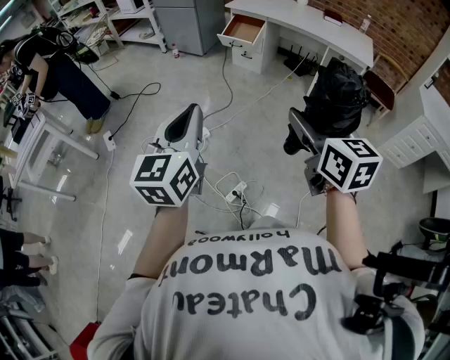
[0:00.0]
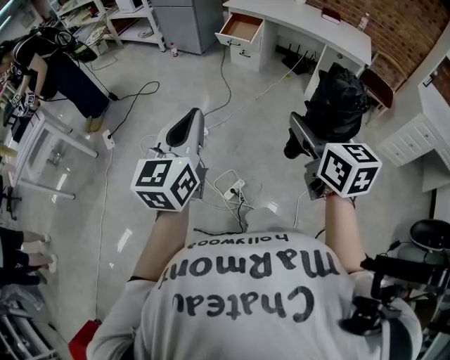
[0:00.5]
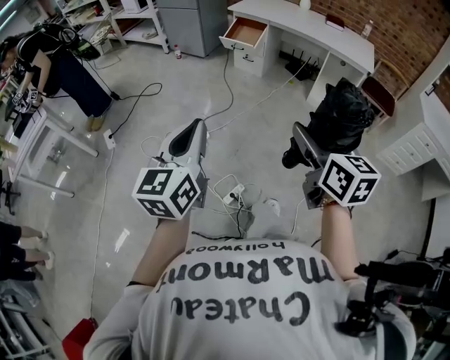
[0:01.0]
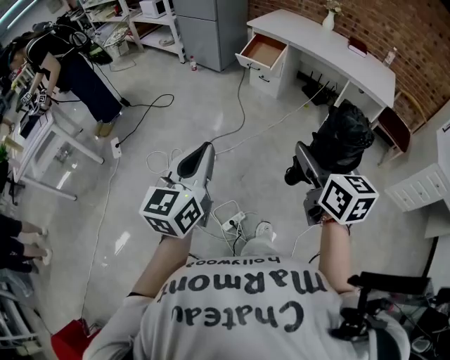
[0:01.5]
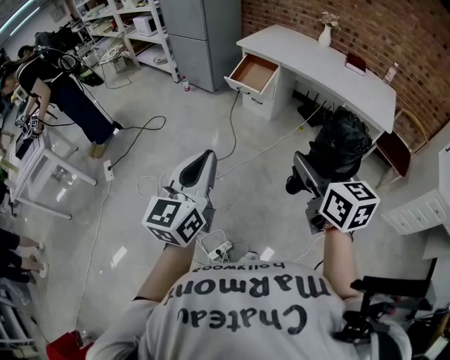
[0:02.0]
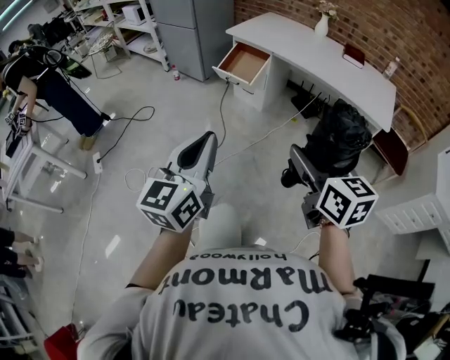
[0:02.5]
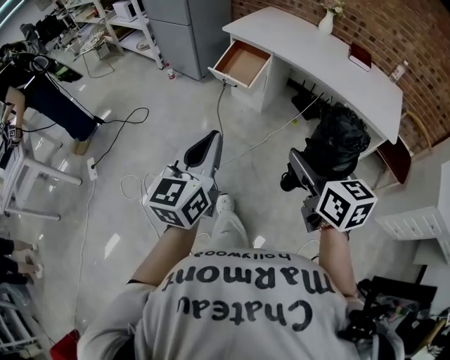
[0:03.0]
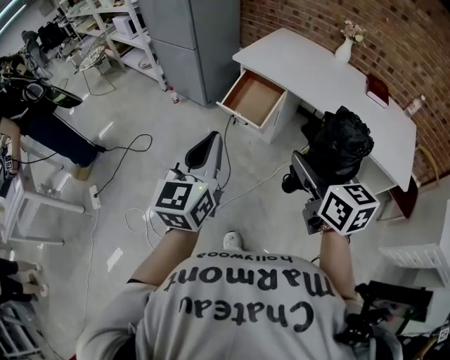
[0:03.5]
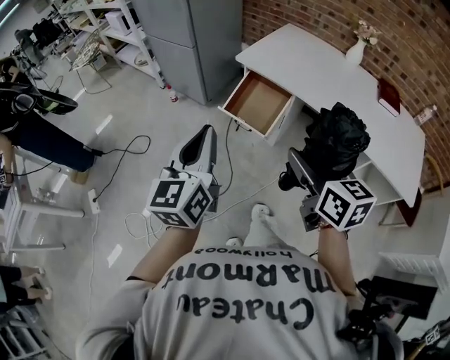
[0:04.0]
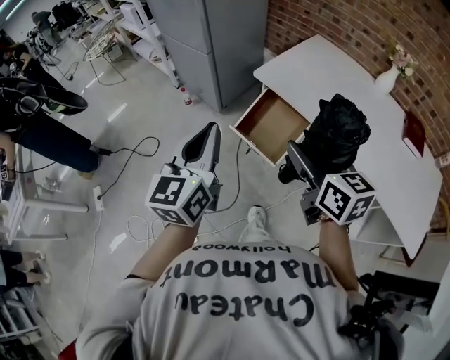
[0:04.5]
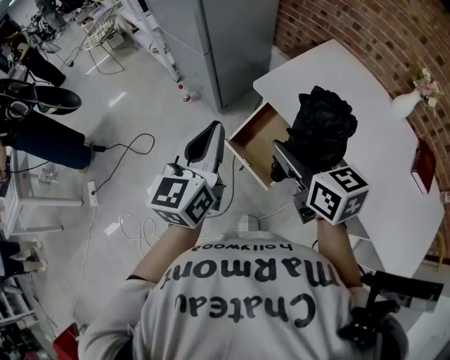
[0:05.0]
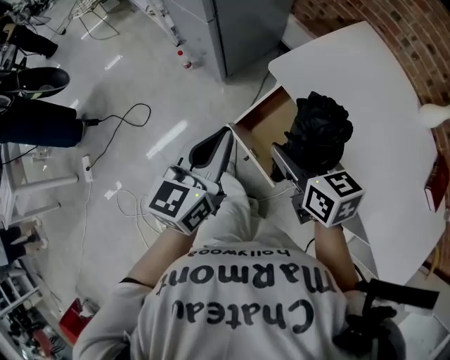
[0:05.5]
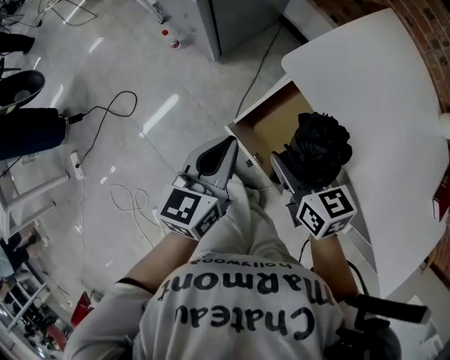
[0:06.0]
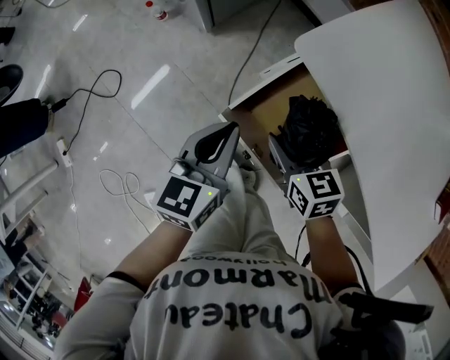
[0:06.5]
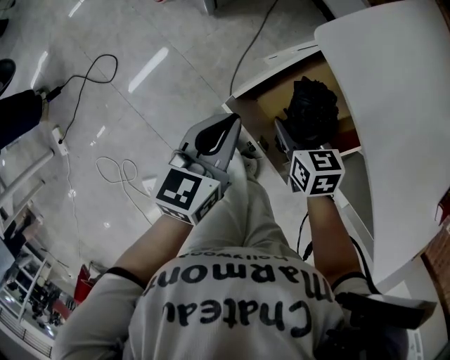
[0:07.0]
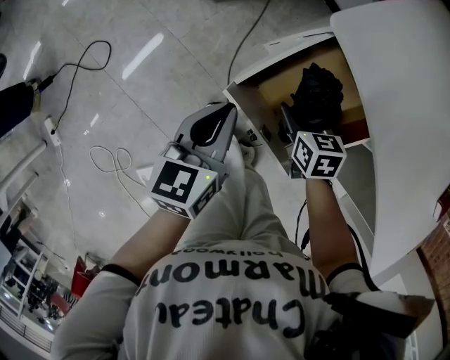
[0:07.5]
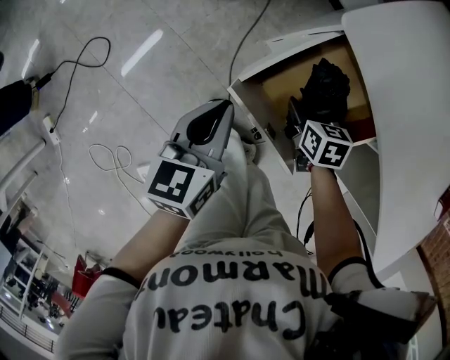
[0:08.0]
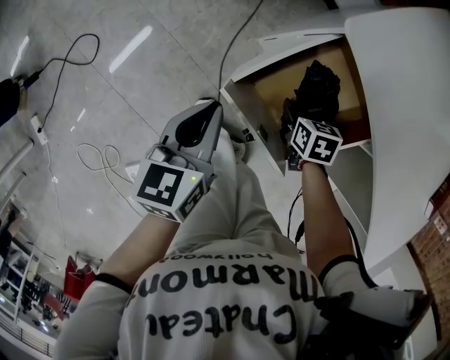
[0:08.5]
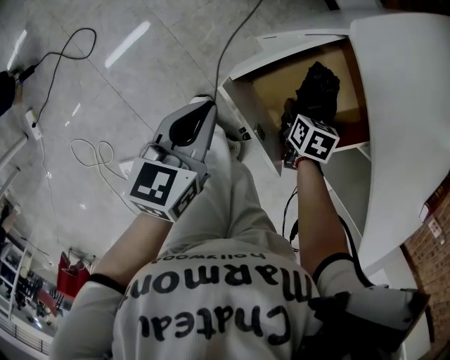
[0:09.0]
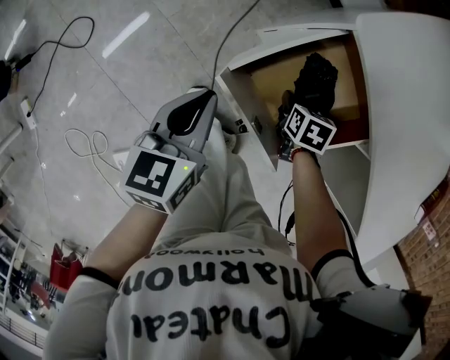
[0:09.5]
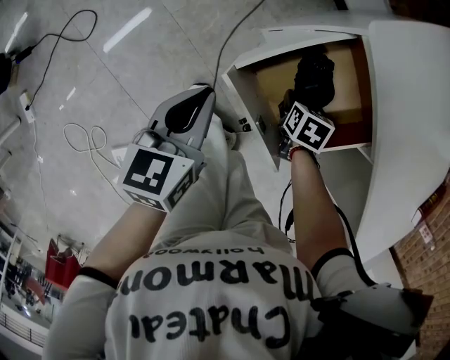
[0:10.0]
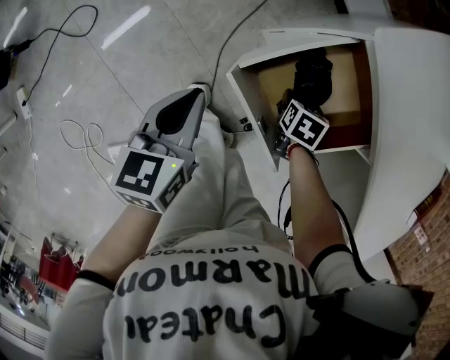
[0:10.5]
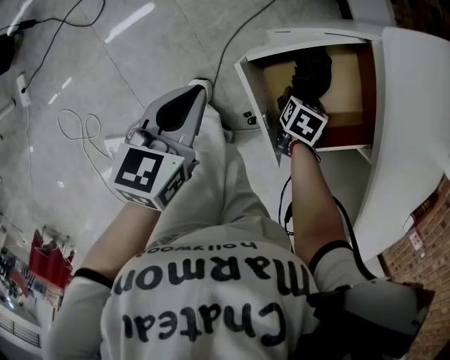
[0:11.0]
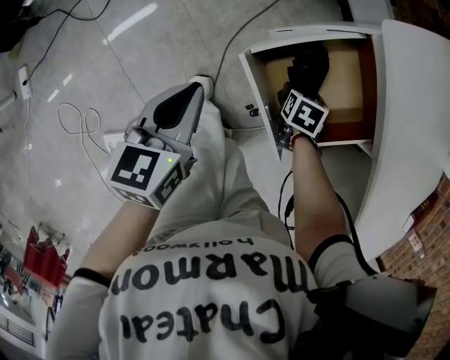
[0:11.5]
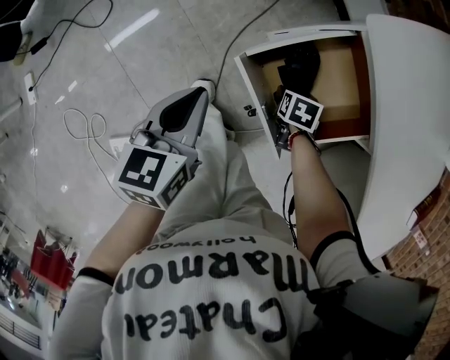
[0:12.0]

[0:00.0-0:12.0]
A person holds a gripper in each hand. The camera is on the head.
0:00.0 to 0:02.0: The two grippers go roughly 30 cm forward and to the right.
0:02.0 to 0:04.0: The two grippers travel together, forward, roughly 50 cm.
0:04.0 to 0:06.0: Both grippers travel together forward, some 35 cm. The right gripper turns by some 30 degrees, while the left gripper rotates approximately 20 degrees.
0:06.0 to 0:08.0: The right gripper travels downward by approximately 25 cm, and swivels about 30 degrees, while the left gripper goes about 15 cm downward.
0:08.0 to 0:10.0: The right gripper goes roughly 5 cm downward.
0:10.0 to 0:12.0: The left gripper ends up approximately 5 cm from where it was.

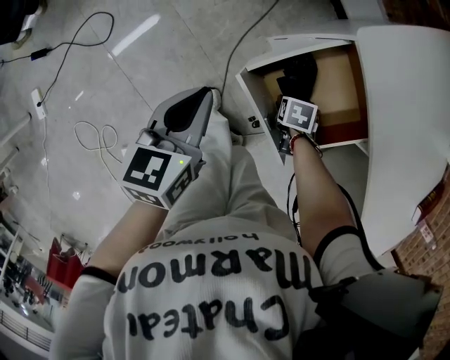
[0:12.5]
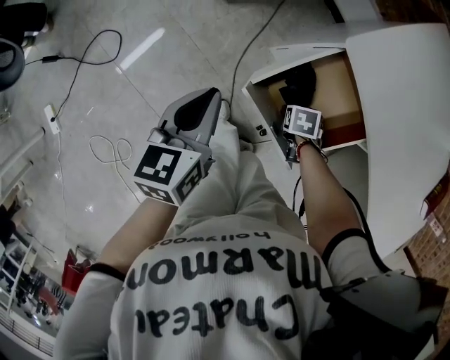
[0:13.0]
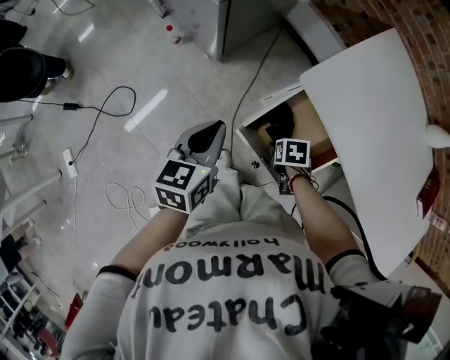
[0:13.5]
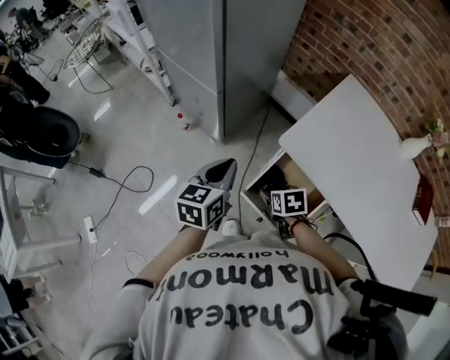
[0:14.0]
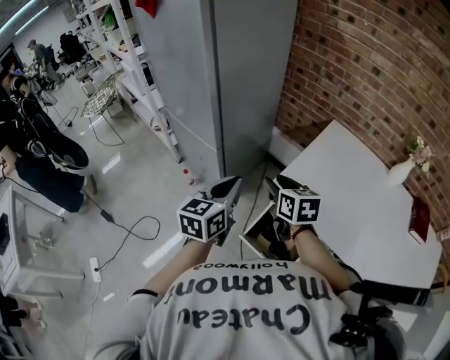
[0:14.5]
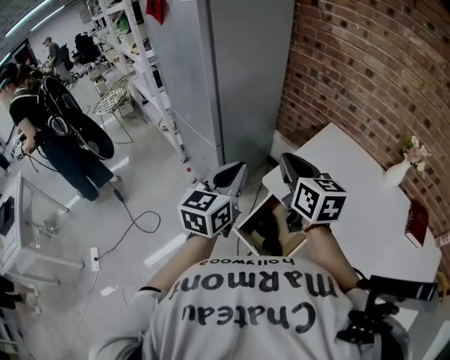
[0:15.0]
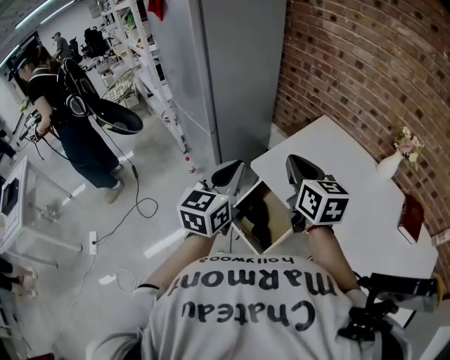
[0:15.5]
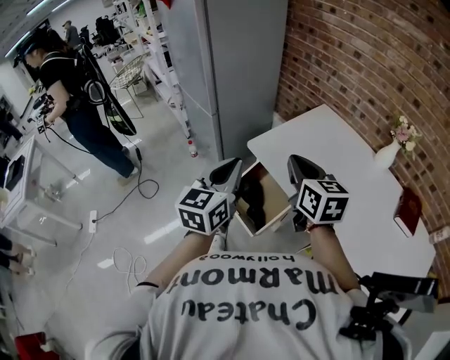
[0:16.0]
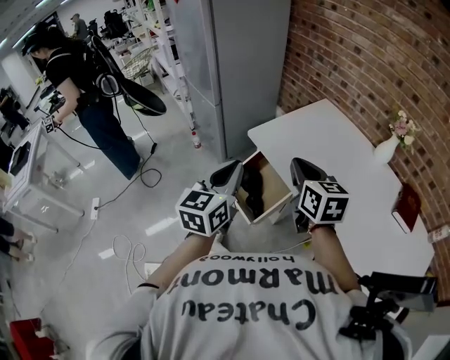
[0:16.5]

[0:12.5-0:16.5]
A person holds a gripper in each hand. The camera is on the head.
0:12.5 to 0:14.5: The left gripper moves upward, roughly 35 cm, and swivels approximately 30 degrees. The right gripper travels upward by roughly 50 cm, tips its fingers upward by approximately 50 degrees, and closes.
0:14.5 to 0:16.5: Both grippers move backward and to the right, roughly 30 cm. The right gripper closes up.

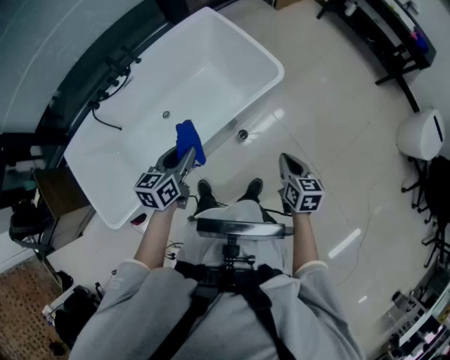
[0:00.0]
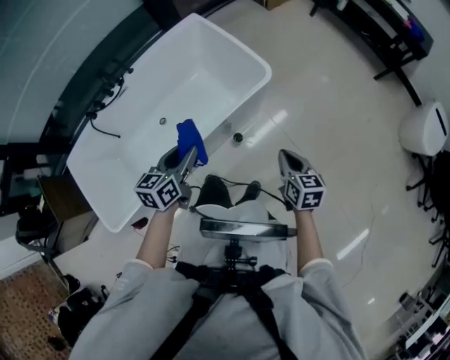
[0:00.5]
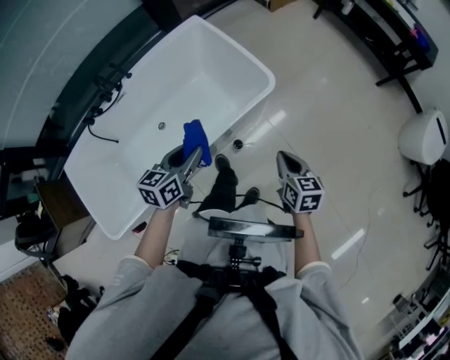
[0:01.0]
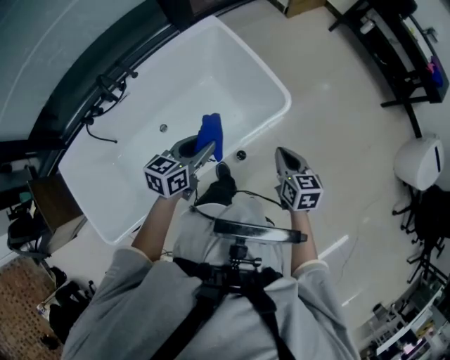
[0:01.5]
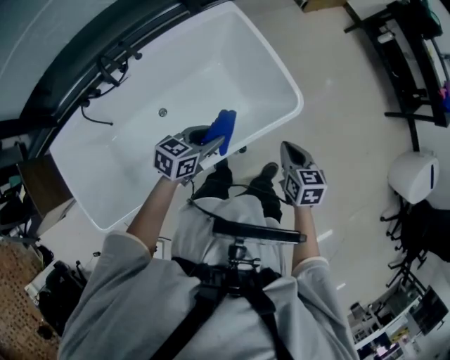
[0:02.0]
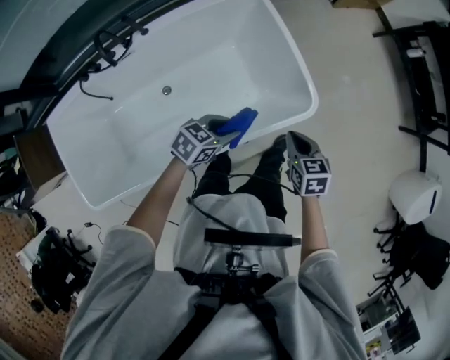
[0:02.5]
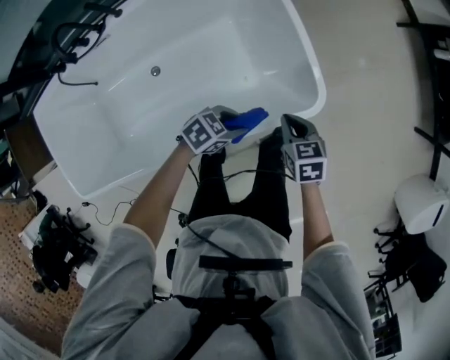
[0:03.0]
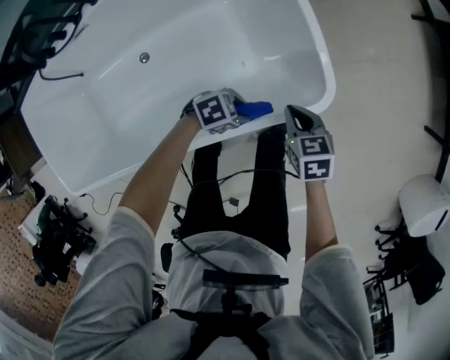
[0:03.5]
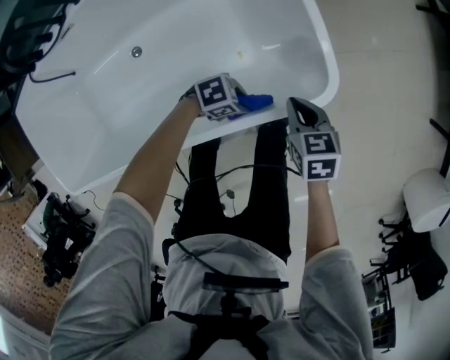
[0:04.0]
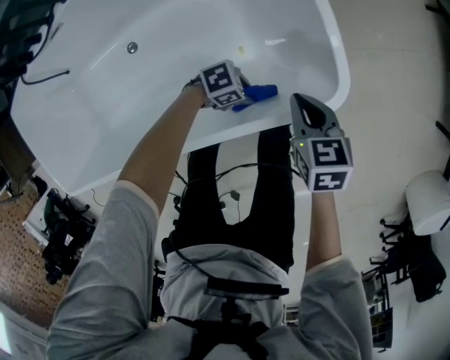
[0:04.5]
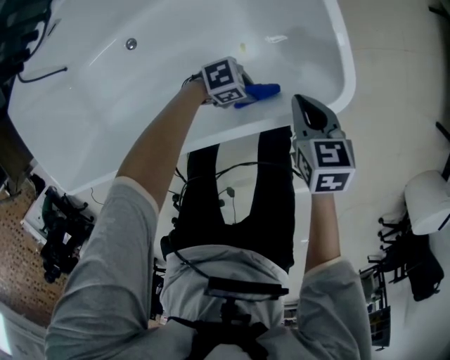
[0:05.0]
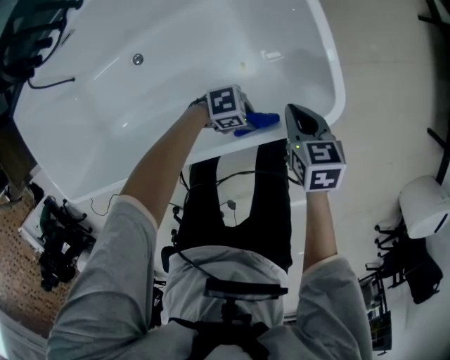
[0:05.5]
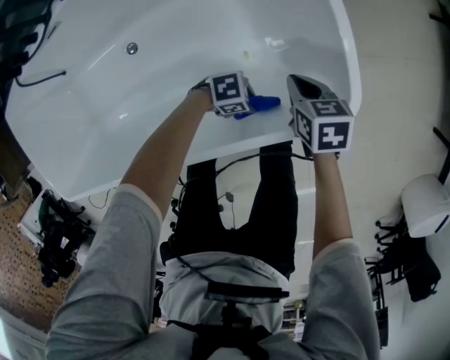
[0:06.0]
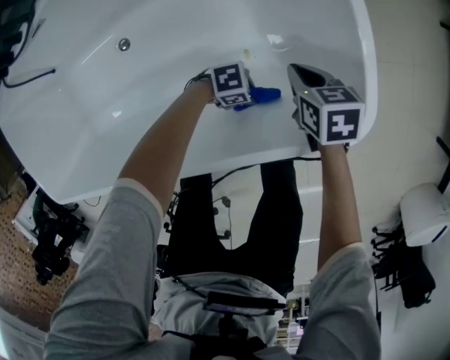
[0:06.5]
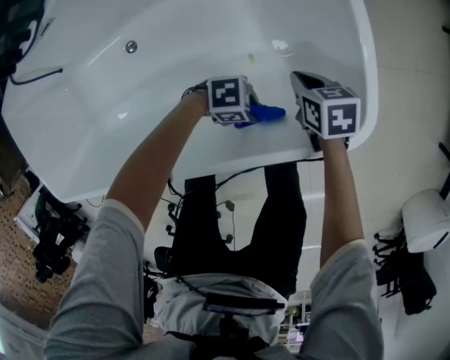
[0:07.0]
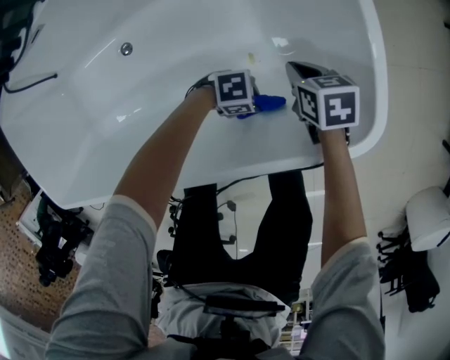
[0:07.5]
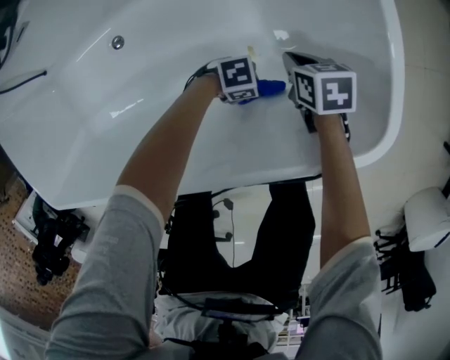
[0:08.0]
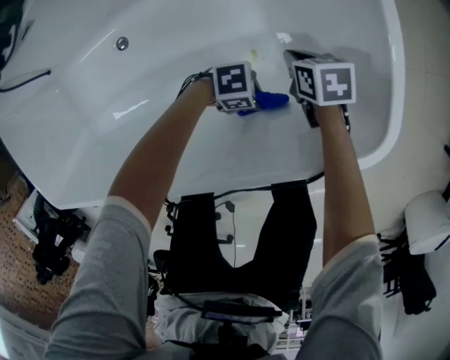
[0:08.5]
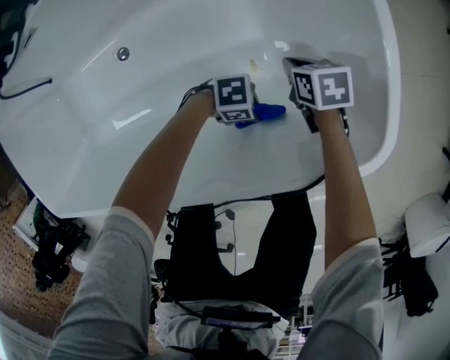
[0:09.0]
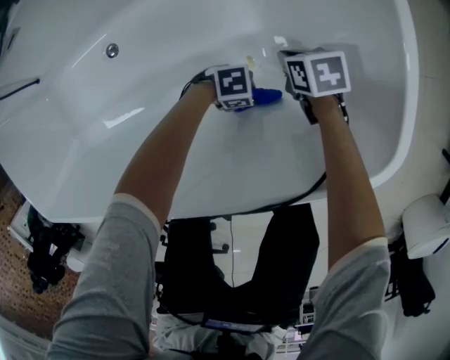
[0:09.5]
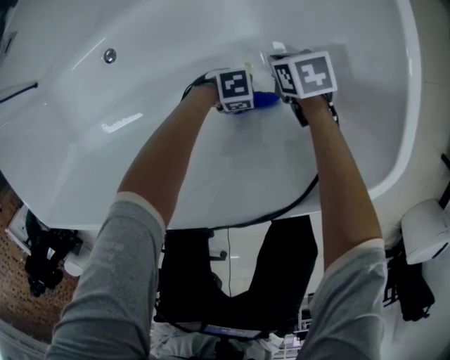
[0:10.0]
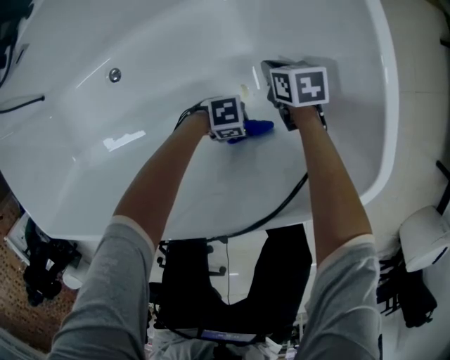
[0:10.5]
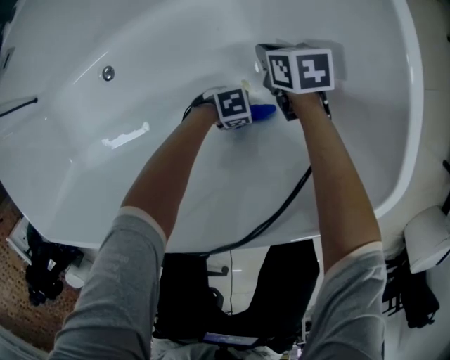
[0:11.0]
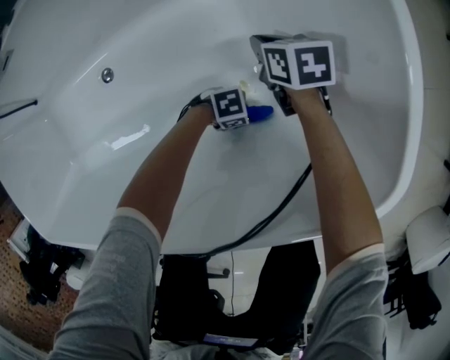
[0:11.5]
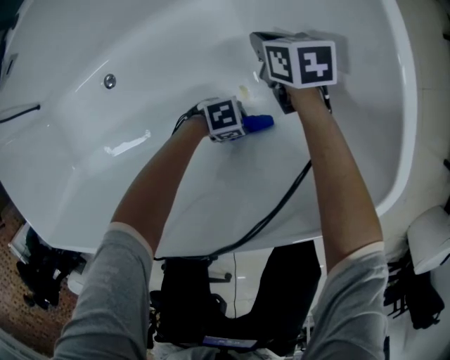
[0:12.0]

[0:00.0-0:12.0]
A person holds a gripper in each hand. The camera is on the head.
0:00.0 to 0:02.0: Both grippers move forward, roughly 25 cm. The left gripper rotates about 20 degrees.
0:02.0 to 0:04.0: Both grippers move downward, some 30 cm. The right gripper changes its angle by about 20 degrees, while the left gripper turns by about 50 degrees.
0:04.0 to 0:06.0: The right gripper shifts by roughly 10 cm. Meanwhile the left gripper moves up and down over approximately 5 cm, changing direction 2 times.
0:06.0 to 0:08.0: The left gripper moves up and down over some 15 cm, changing direction 2 times, while the right gripper heads downward, covering approximately 15 cm.
0:08.0 to 0:10.0: The grippers both shift downward by roughly 5 cm.
0:10.0 to 0:12.0: The right gripper changes place by about 10 cm, and changes its angle by about 20 degrees, while the left gripper goes upward and returns, about 5 cm each way.
